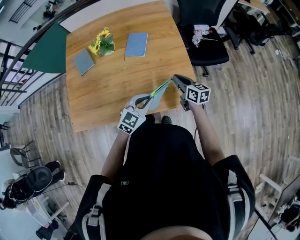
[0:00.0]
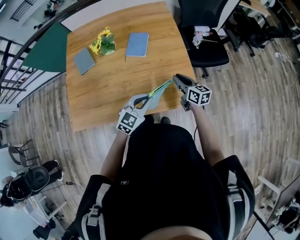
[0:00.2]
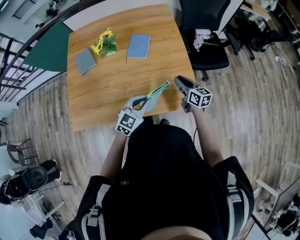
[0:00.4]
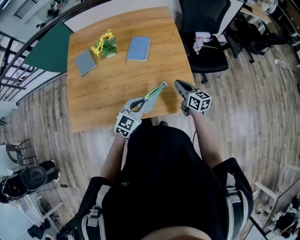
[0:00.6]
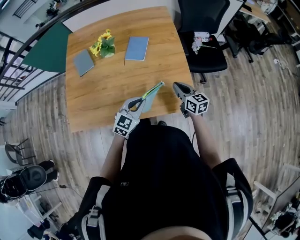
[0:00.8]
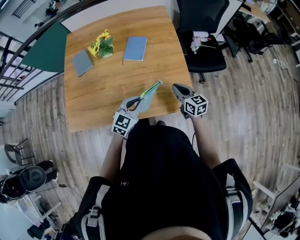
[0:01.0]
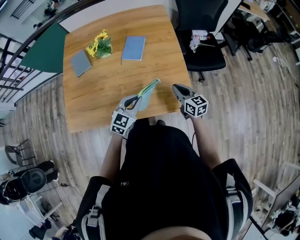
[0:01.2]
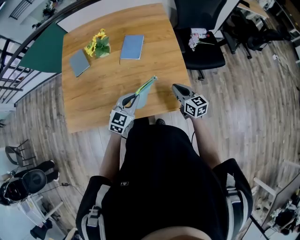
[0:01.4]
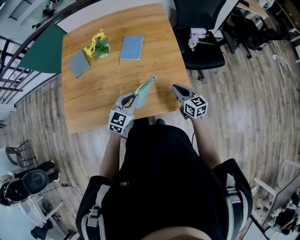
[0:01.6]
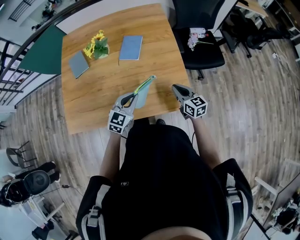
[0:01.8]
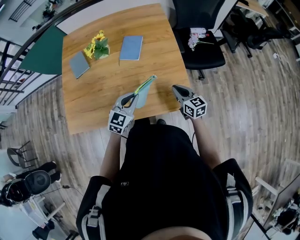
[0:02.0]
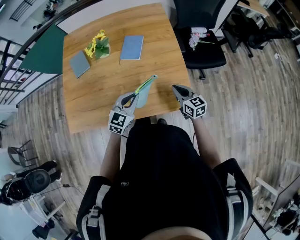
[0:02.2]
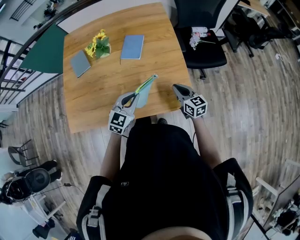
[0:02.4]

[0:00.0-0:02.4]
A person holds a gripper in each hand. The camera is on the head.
0:00.0 to 0:02.4: There are only small adjustments of the grippers.

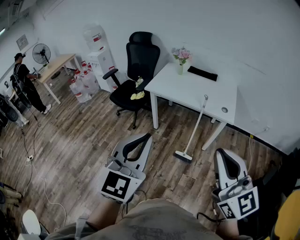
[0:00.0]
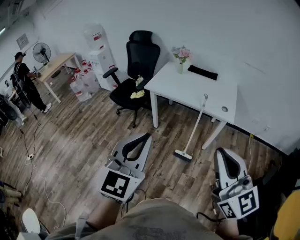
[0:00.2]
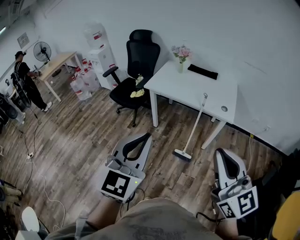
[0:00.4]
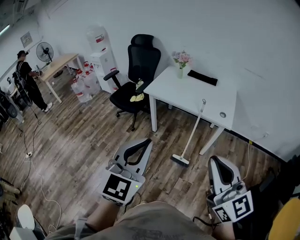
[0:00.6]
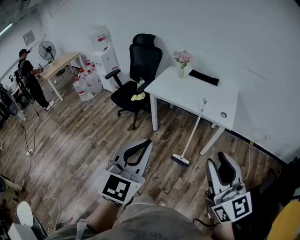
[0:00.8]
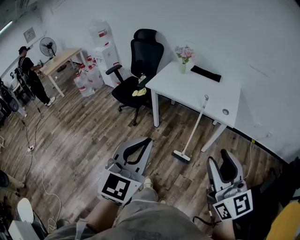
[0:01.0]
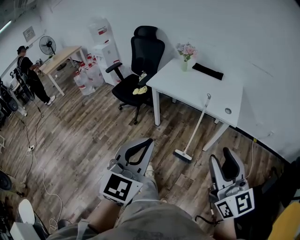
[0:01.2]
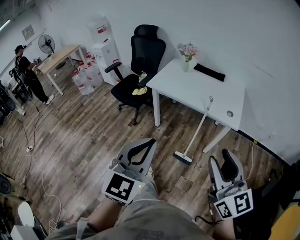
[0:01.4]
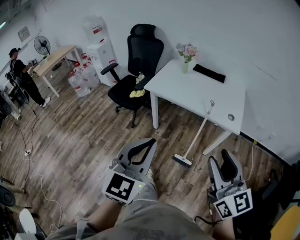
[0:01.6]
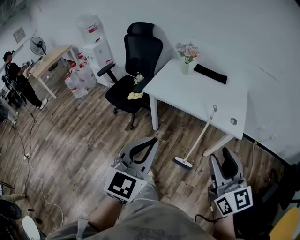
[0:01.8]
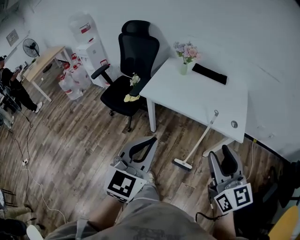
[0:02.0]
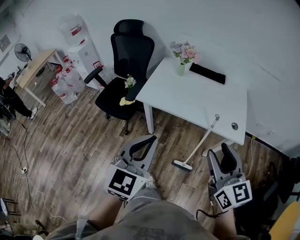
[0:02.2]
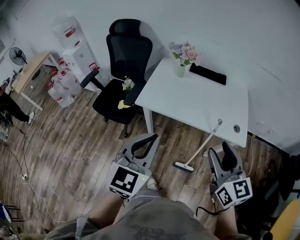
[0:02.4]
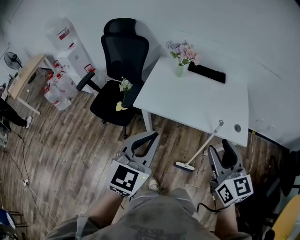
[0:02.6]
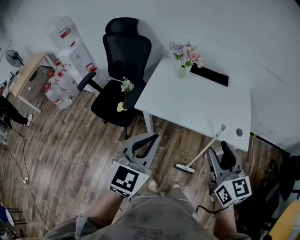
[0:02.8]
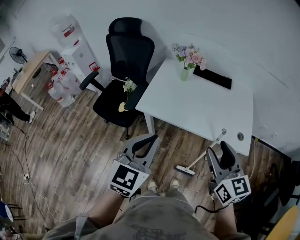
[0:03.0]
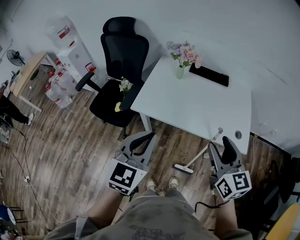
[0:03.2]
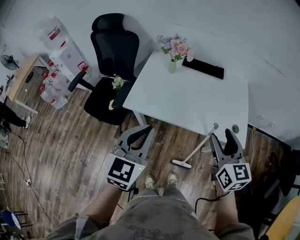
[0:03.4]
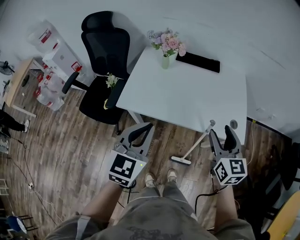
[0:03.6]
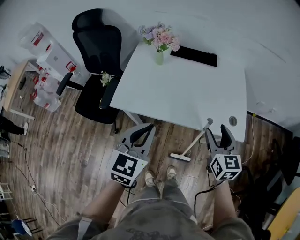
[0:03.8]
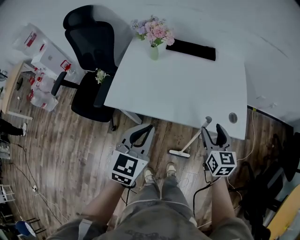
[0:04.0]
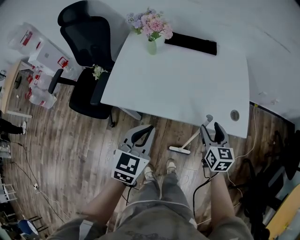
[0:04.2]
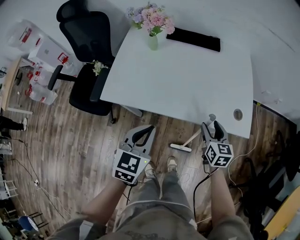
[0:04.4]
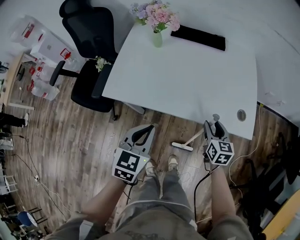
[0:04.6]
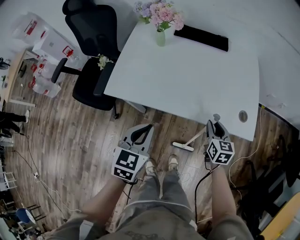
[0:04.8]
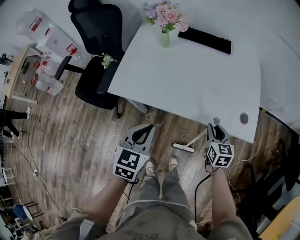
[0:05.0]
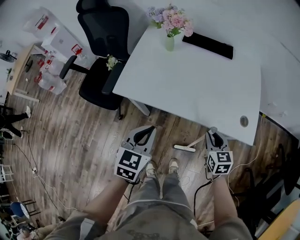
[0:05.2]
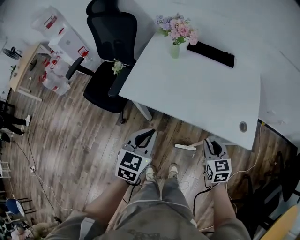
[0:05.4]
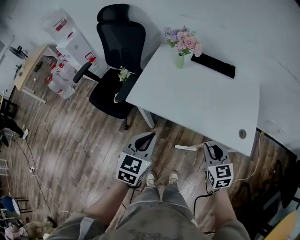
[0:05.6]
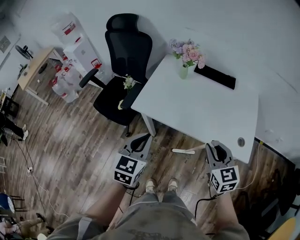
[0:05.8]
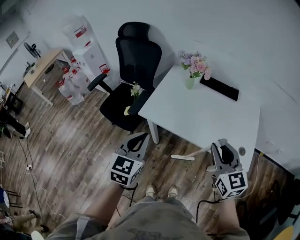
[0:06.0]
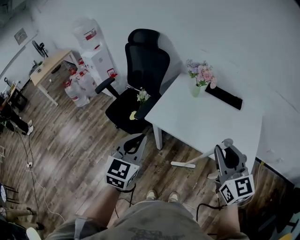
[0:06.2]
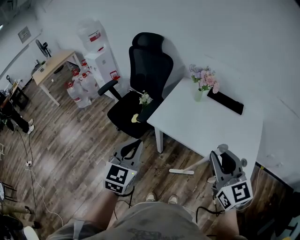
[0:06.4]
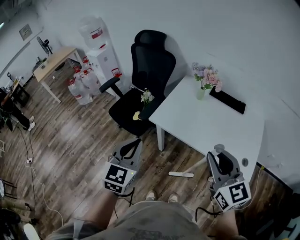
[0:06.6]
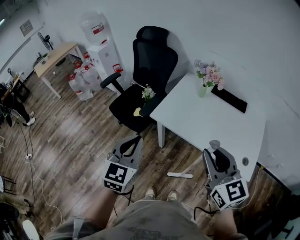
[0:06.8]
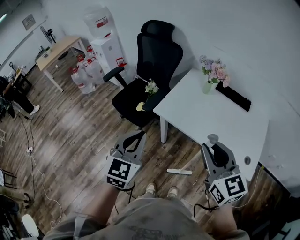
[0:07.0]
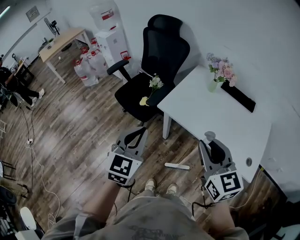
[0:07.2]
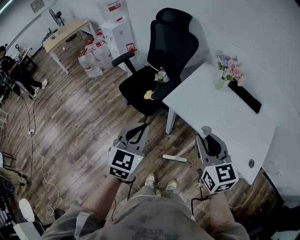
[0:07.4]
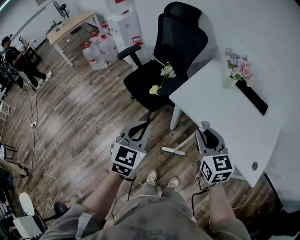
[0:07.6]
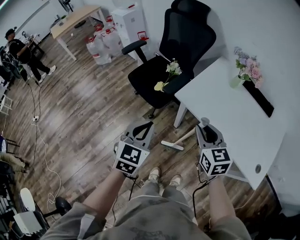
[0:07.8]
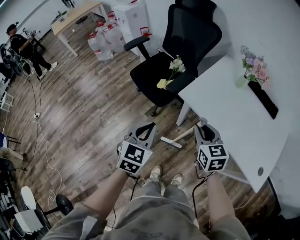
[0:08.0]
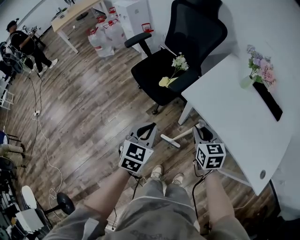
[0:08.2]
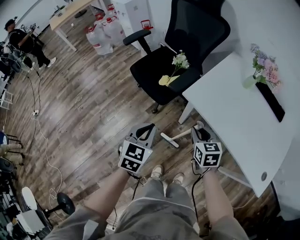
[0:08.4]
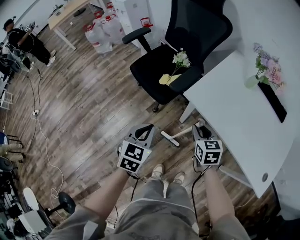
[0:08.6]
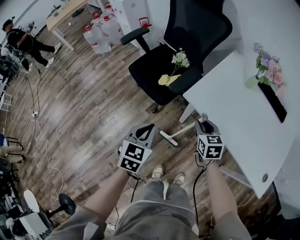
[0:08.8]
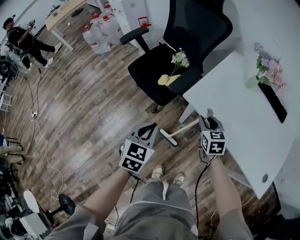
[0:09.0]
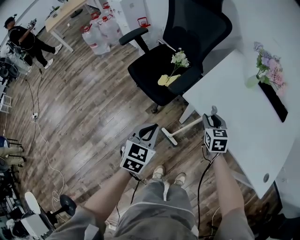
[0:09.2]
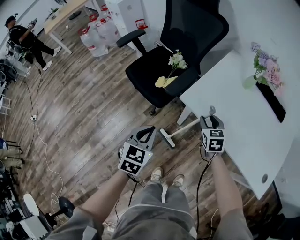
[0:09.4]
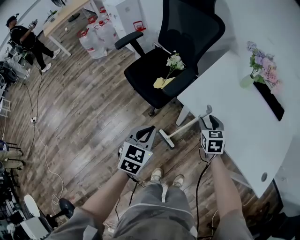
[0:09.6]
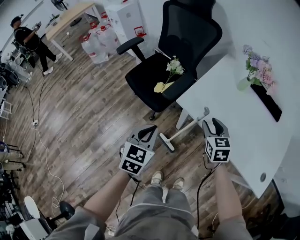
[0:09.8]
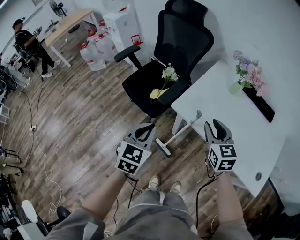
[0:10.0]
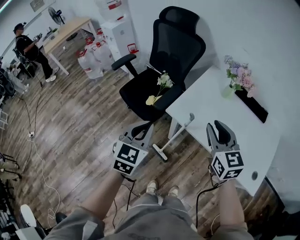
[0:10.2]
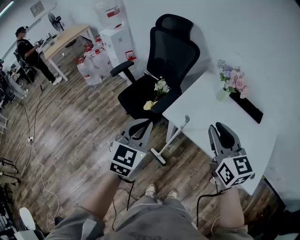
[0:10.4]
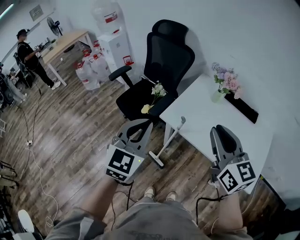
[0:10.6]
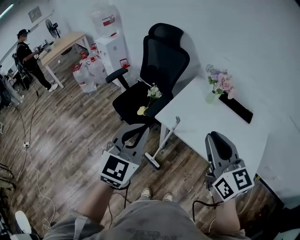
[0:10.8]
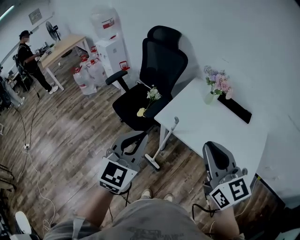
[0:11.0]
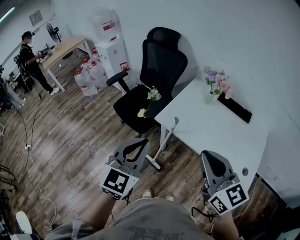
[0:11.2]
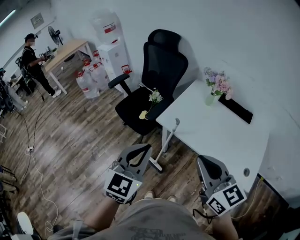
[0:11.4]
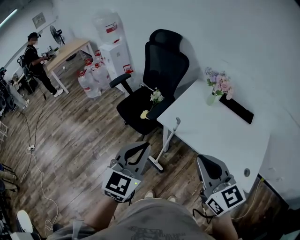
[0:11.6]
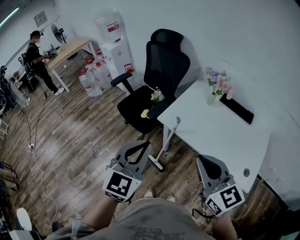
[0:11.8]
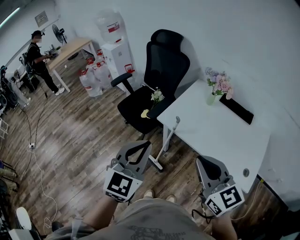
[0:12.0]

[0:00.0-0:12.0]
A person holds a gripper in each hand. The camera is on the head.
0:00.0 to 0:01.6: Both grippers move forward and downward, approximately 15 cm. The right gripper opens its fingers.
0:01.6 to 0:03.0: Both grippers travel together forward, about 30 cm.
0:03.0 to 0:04.4: The grippers both shift downward, forward and to the right by roughly 30 cm. The right gripper turns by roughly 30 degrees.
0:04.4 to 0:06.0: The right gripper shifts roughly 30 cm upward and to the left, swivels approximately 40 degrees, and closes. The left gripper moves to the left and upward, approximately 20 cm, and rotates some 20 degrees.
0:06.0 to 0:07.6: Both grippers travel together to the left, approximately 15 cm.
0:07.6 to 0:09.0: The left gripper is displaced downward and forward by approximately 15 cm. Meanwhile the right gripper heads downward and forward, covering approximately 25 cm.
0:09.0 to 0:10.4: The right gripper travels upward by about 30 cm, and rotates roughly 30 degrees, while the left gripper travels upward by approximately 20 cm, and changes its angle by roughly 20 degrees.
0:10.4 to 0:12.0: The left gripper shifts about 15 cm backward and upward; the right gripper heads backward, covering some 15 cm.

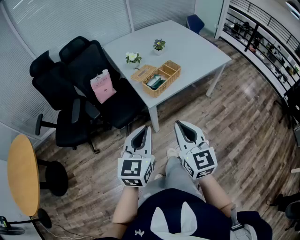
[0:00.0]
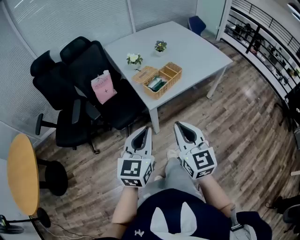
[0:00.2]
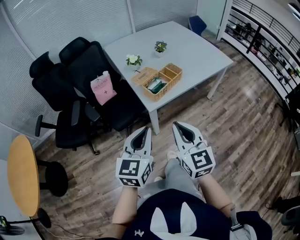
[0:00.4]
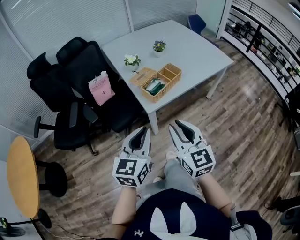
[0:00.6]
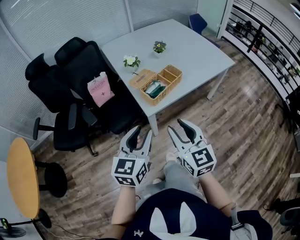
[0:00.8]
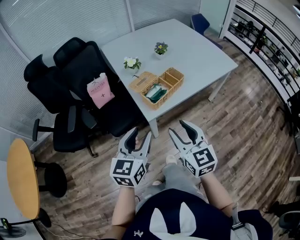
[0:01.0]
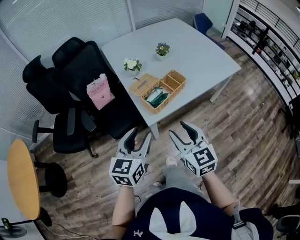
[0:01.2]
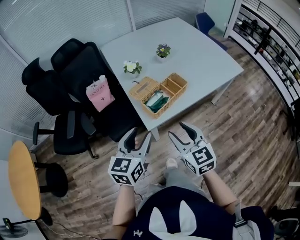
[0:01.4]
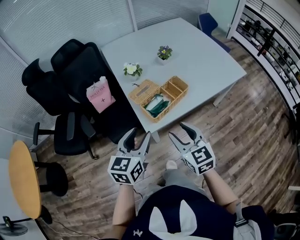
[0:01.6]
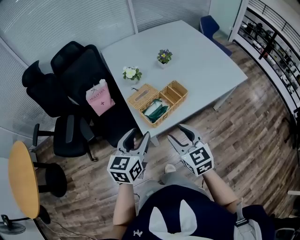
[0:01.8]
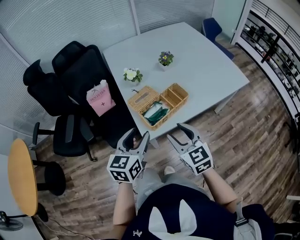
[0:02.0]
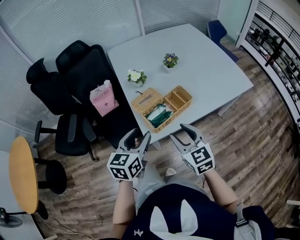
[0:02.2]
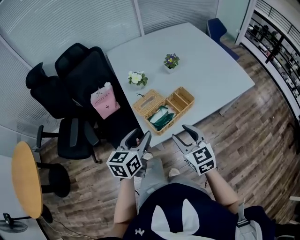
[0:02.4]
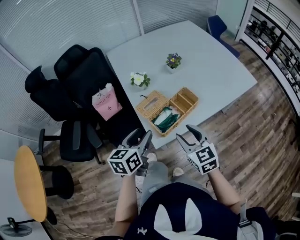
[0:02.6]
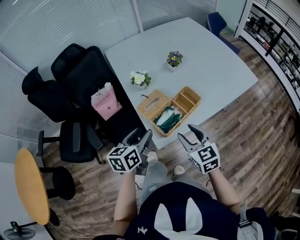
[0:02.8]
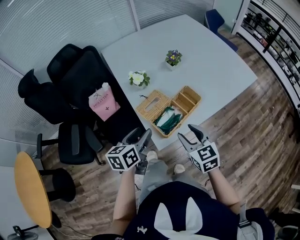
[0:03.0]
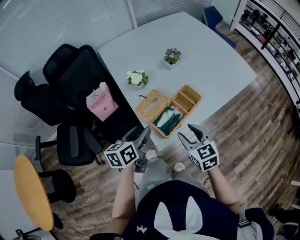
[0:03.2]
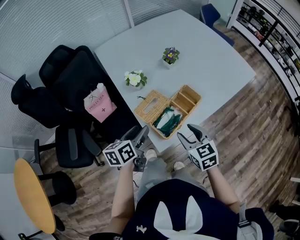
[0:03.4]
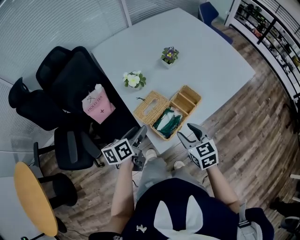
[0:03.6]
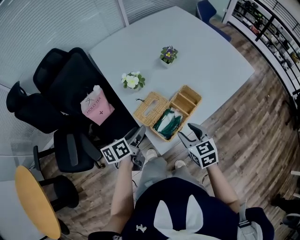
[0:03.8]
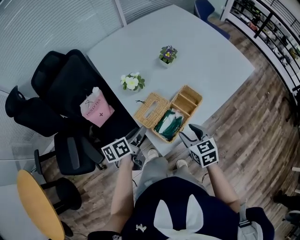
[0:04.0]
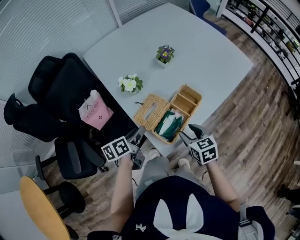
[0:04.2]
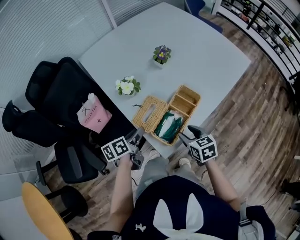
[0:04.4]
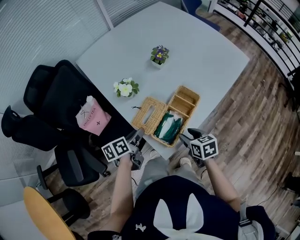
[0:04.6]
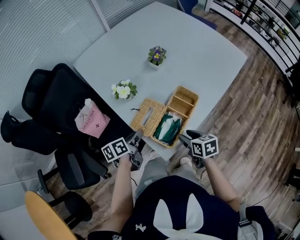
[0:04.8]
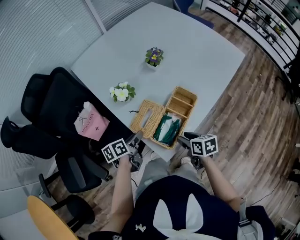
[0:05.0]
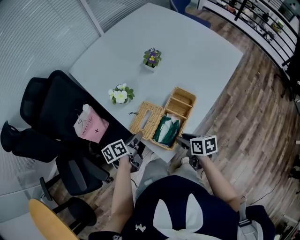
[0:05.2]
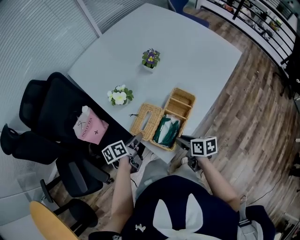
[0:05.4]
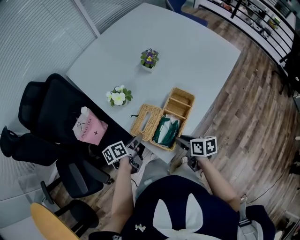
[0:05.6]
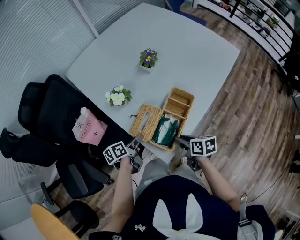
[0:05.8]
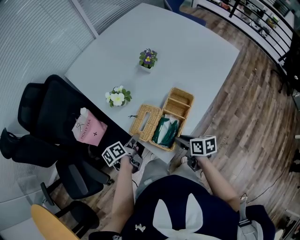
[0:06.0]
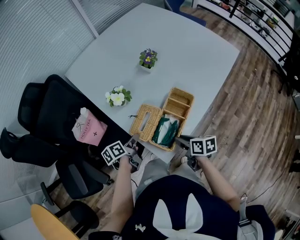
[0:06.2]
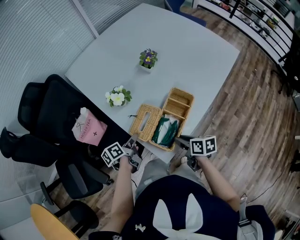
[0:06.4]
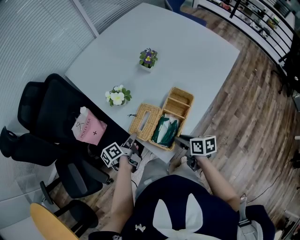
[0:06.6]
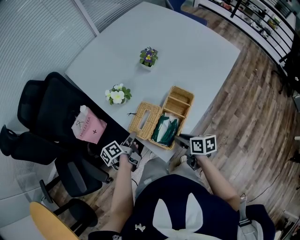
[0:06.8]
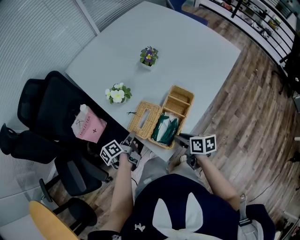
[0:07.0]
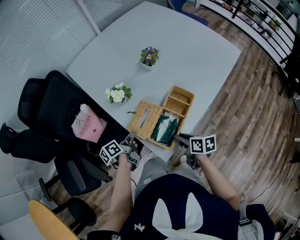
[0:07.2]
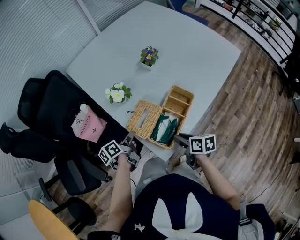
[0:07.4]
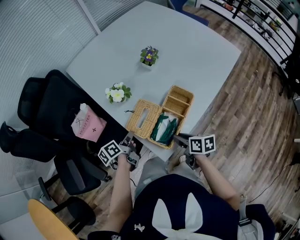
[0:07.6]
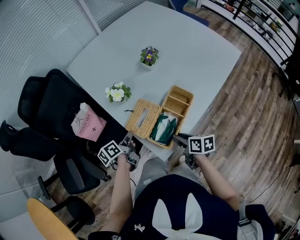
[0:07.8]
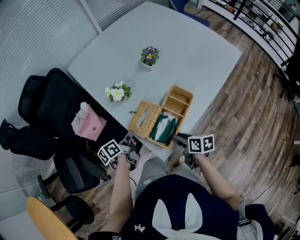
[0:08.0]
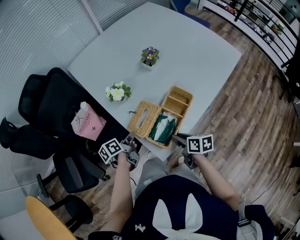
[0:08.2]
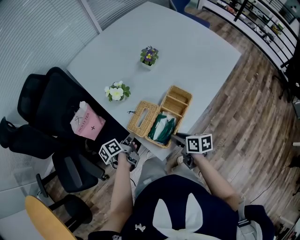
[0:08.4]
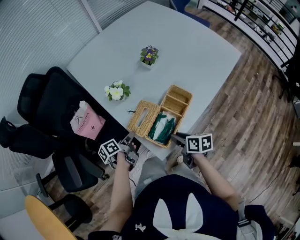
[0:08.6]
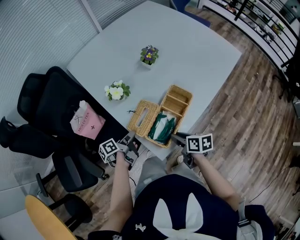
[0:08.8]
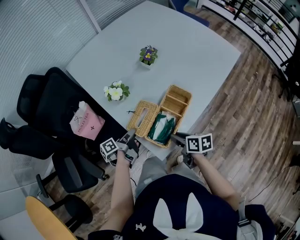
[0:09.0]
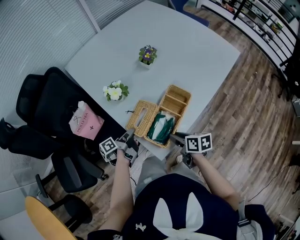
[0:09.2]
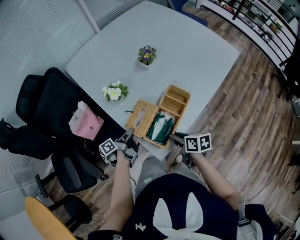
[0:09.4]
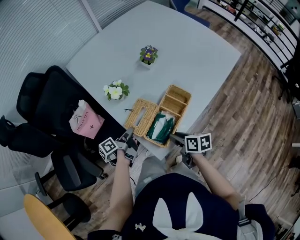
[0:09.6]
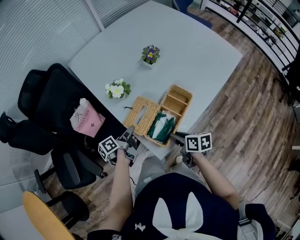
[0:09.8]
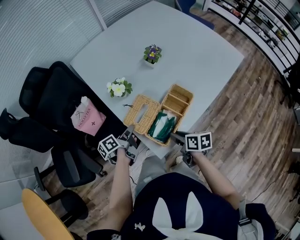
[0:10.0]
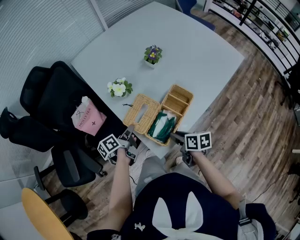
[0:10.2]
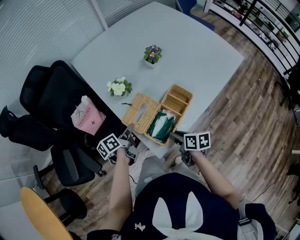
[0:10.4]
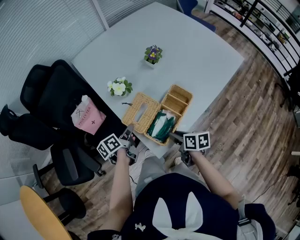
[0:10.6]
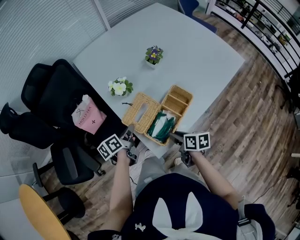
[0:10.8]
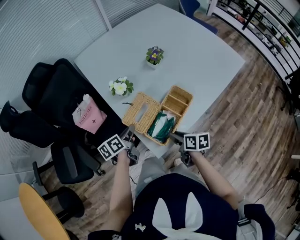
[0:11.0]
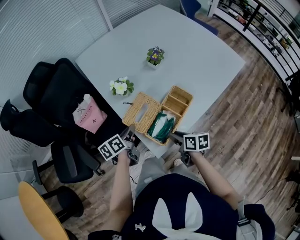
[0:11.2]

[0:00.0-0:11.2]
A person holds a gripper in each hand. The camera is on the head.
0:00.0 to 0:01.6: The two grippers go about 20 cm forward. The left gripper opens its fingers, while the right gripper opens.
0:01.6 to 0:03.2: Both grippers move forward and downward, roughly 15 cm. The left gripper changes its angle by approximately 30 degrees.
0:03.2 to 0:04.8: The left gripper goes approximately 15 cm downward and forward, and rotates about 20 degrees. The right gripper heads downward, covering about 10 cm, and turns by roughly 40 degrees.
0:04.8 to 0:06.4: There are only small adjustments of the grippers.
0:06.4 to 0:08.0: The left gripper closes its fingers.
0:09.6 to 0:11.2: The left gripper travels upward by approximately 5 cm, and changes its angle by roughly 30 degrees.
